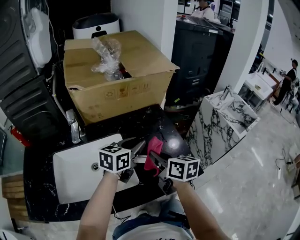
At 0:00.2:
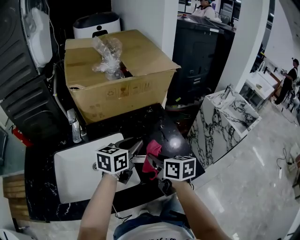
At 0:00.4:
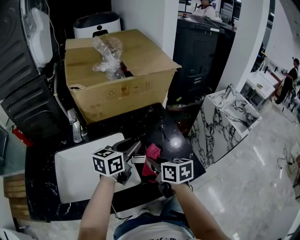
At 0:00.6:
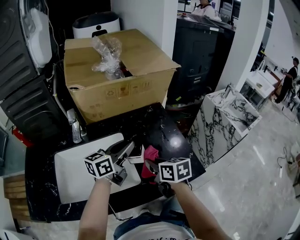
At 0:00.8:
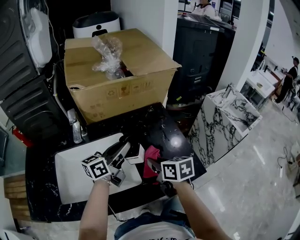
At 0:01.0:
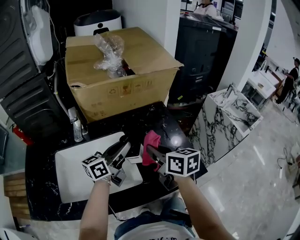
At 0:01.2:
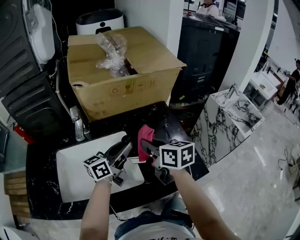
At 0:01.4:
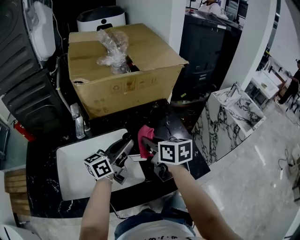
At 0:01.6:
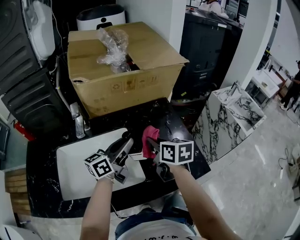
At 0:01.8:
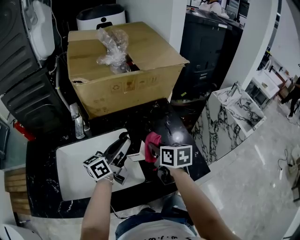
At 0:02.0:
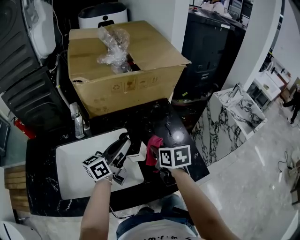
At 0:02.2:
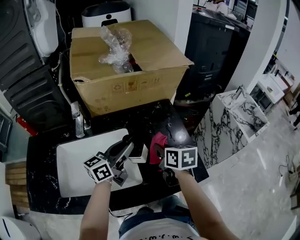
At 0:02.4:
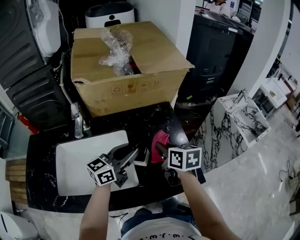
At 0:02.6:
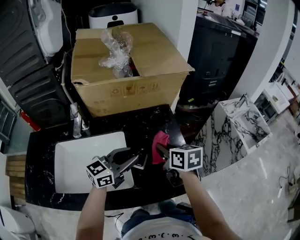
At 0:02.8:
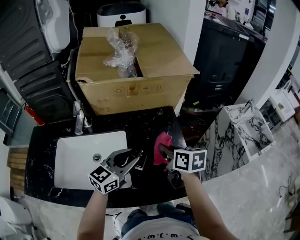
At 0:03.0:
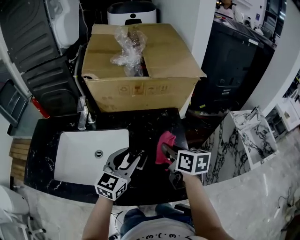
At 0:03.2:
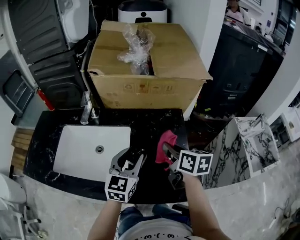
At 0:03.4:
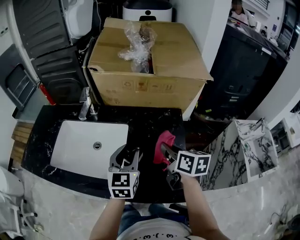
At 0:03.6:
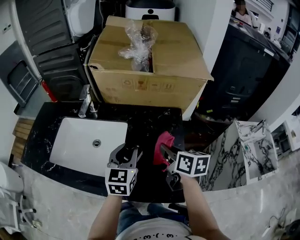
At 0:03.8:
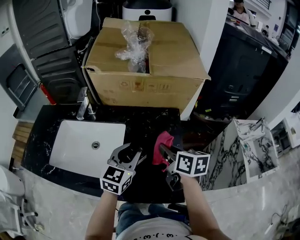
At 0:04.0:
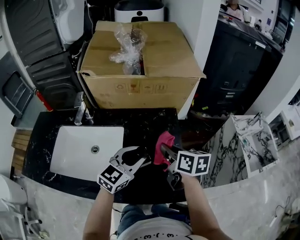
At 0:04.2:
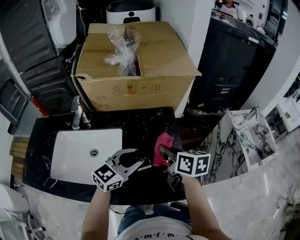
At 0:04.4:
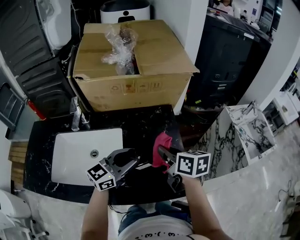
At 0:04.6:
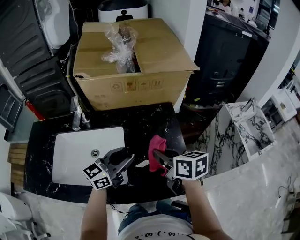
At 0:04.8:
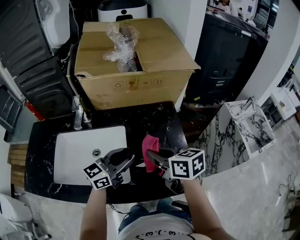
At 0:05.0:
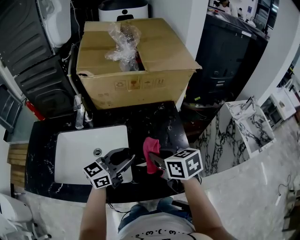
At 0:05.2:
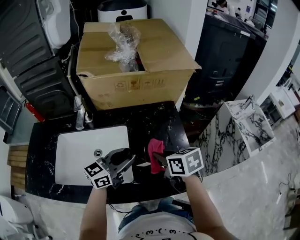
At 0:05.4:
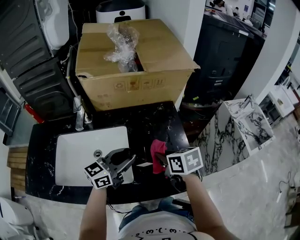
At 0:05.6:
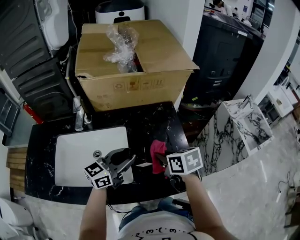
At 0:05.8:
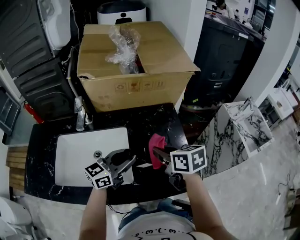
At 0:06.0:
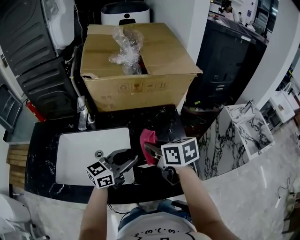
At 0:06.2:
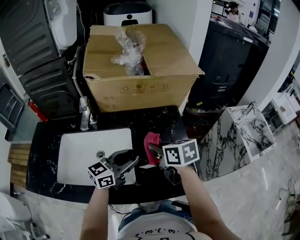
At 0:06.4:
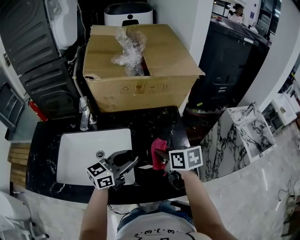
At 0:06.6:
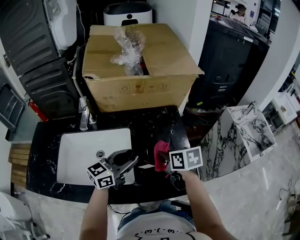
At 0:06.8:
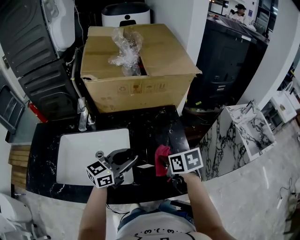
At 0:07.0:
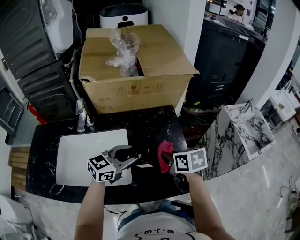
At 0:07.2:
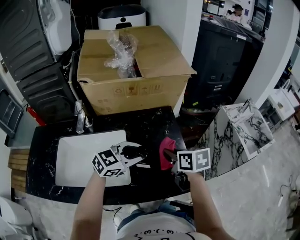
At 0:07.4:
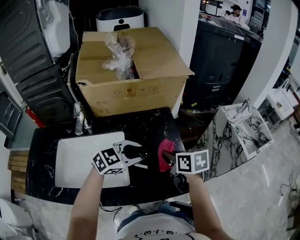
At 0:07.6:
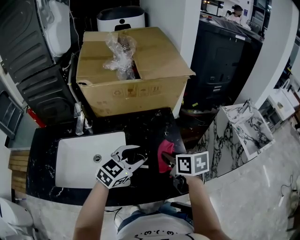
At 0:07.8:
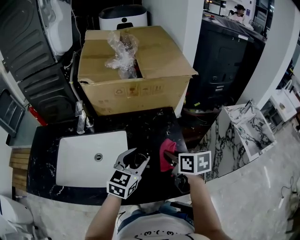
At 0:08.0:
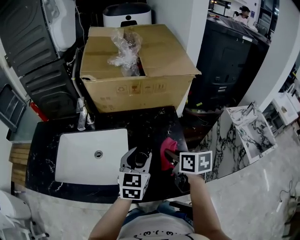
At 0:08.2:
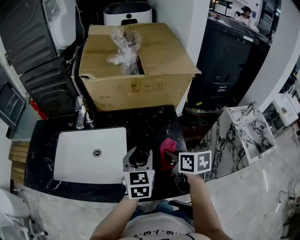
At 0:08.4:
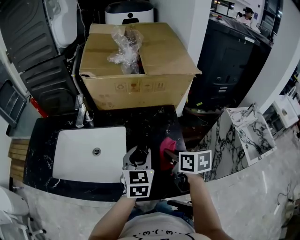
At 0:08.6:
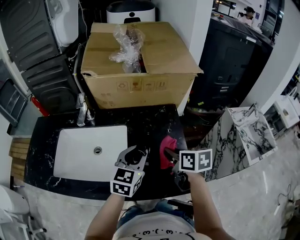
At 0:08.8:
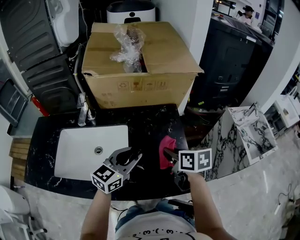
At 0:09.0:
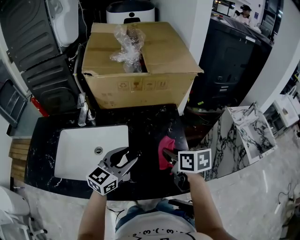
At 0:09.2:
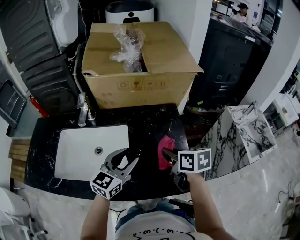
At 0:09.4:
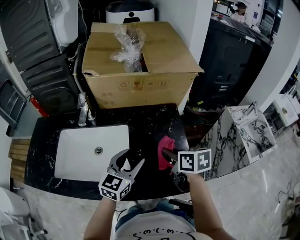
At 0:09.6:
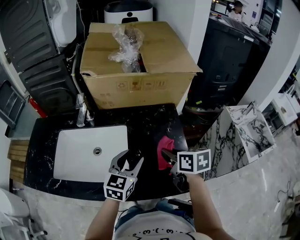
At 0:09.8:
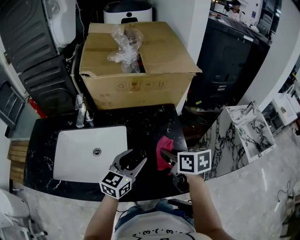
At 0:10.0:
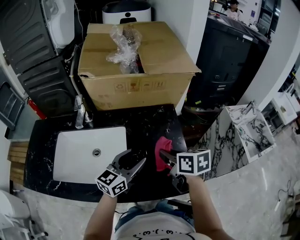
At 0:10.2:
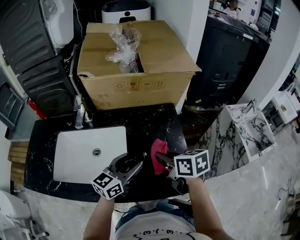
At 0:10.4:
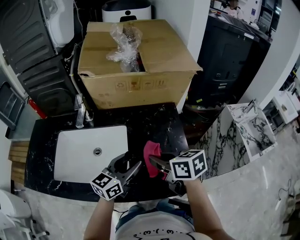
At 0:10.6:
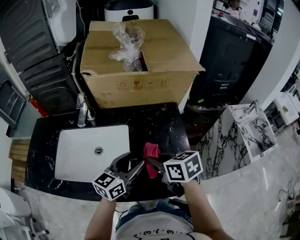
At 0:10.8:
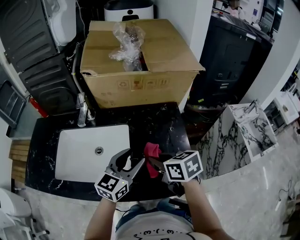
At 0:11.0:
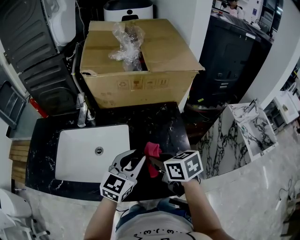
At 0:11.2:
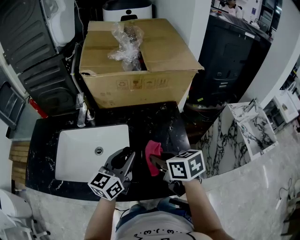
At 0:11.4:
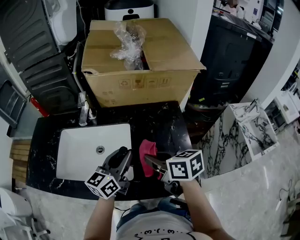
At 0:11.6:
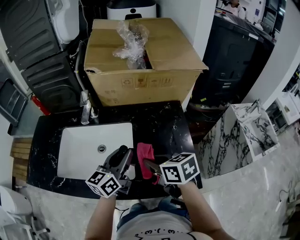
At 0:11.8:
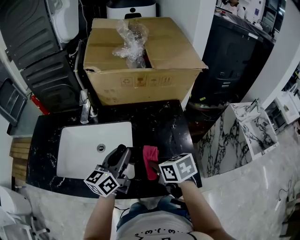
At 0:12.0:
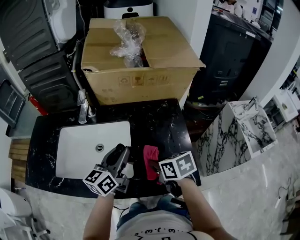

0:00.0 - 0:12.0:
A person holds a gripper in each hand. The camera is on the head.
0:00.0 - 0:01.6: The right gripper goes up and down, roughly 10 cm each way, reversing 2 times. The left gripper travels to the left by about 10 cm, and changes its angle by roughly 30 degrees.
0:01.6 - 0:03.0: Both grippers move to the right, approximately 5 cm. The left gripper swivels roughly 40 degrees.
0:03.0 - 0:04.4: The left gripper turns by about 30 degrees.
0:04.4 - 0:06.0: The right gripper moves to the left, about 10 cm. Meanwhile the left gripper changes place by some 5 cm.
0:06.0 - 0:07.6: The right gripper moves to the right, roughly 10 cm, while the left gripper shifts approximately 5 cm to the right, and changes its angle by roughly 30 degrees.
0:07.6 - 0:09.0: The left gripper is displaced to the left by approximately 5 cm, and turns by about 20 degrees.
0:09.0 - 0:10.4: The right gripper shifts approximately 5 cm to the left.
0:10.4 - 0:12.0: The left gripper goes about 5 cm to the left, and closes its fingers; the right gripper is displaced downward by about 5 cm.

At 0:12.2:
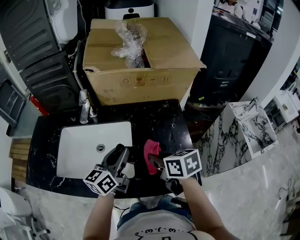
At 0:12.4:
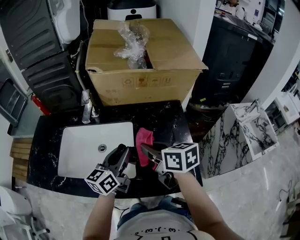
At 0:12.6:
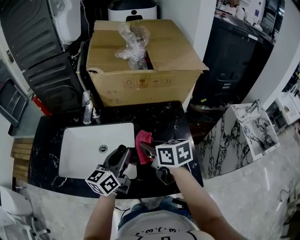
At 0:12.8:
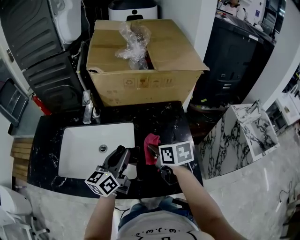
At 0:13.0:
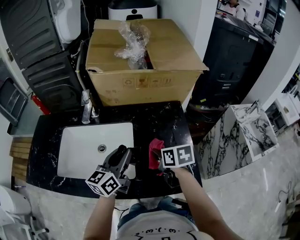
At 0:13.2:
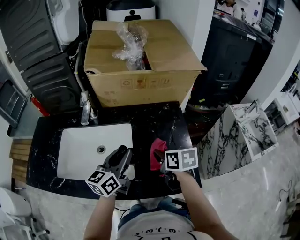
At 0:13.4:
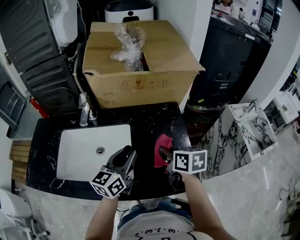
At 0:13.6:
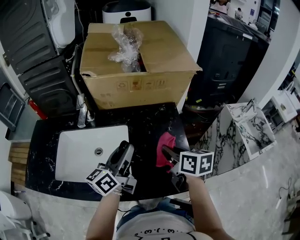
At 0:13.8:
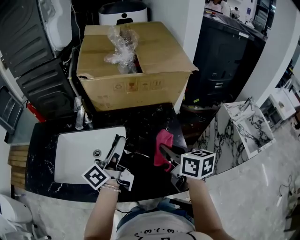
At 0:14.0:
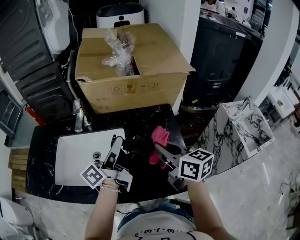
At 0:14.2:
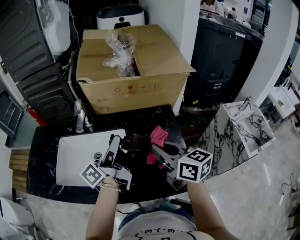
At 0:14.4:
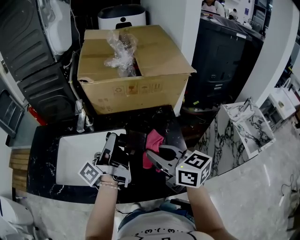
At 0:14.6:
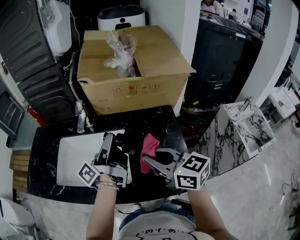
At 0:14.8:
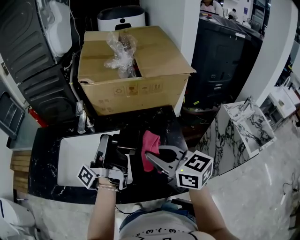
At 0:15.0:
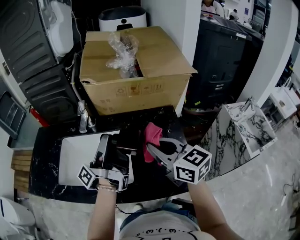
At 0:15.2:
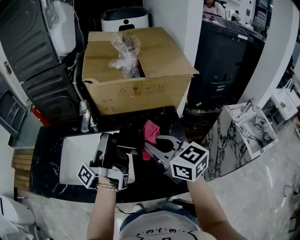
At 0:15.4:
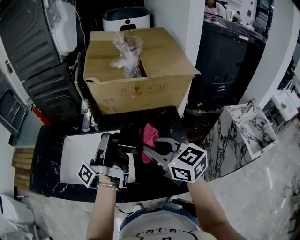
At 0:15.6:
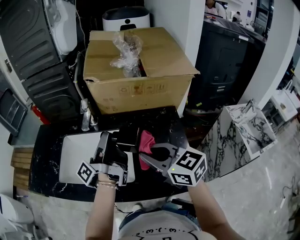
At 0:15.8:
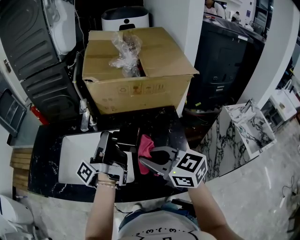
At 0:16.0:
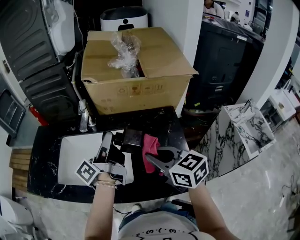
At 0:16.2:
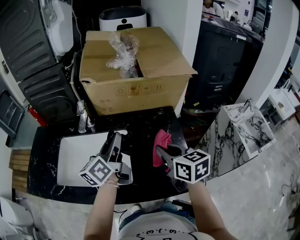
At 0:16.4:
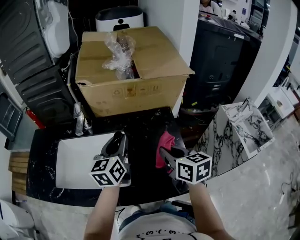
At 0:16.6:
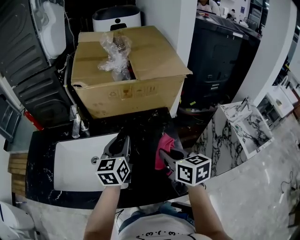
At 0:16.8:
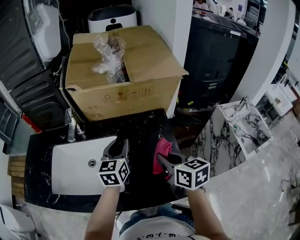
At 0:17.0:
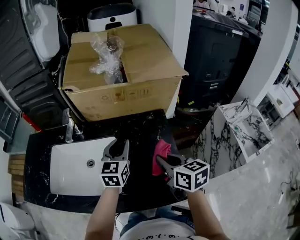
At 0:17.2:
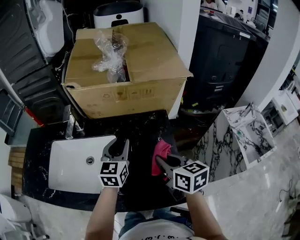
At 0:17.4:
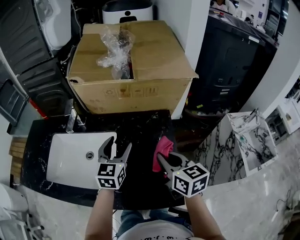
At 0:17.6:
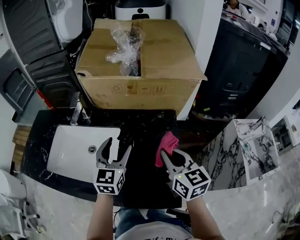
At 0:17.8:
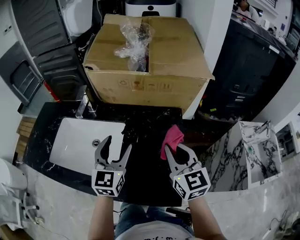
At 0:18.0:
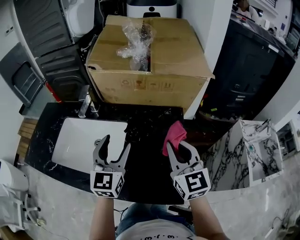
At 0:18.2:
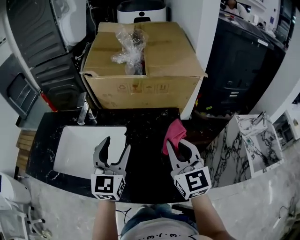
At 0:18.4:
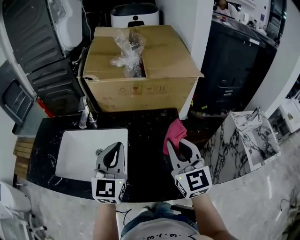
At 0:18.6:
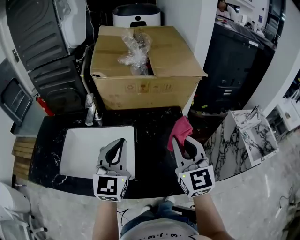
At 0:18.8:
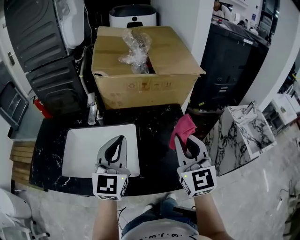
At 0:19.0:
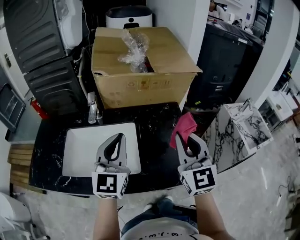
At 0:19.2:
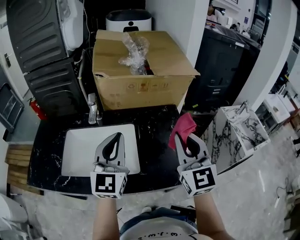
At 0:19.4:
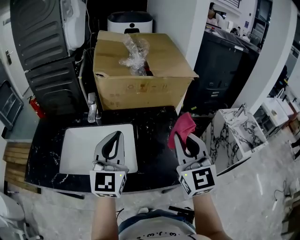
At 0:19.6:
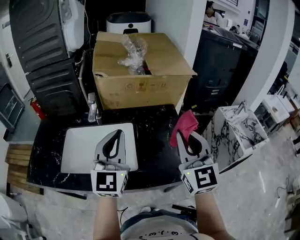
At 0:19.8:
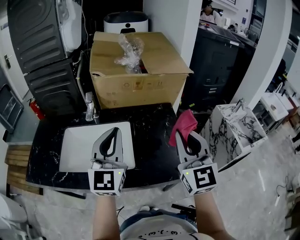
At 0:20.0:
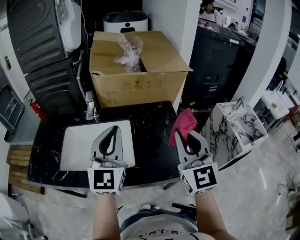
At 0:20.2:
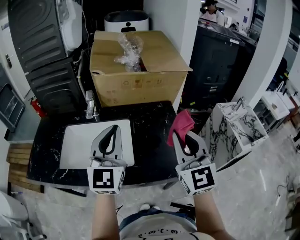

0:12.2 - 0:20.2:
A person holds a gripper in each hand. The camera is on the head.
0:12.2 - 0:13.8: The left gripper goes some 5 cm upward, and rotates roughly 30 degrees. Meanwhile the right gripper goes some 10 cm to the right.
0:13.8 - 0:15.4: The right gripper is displaced to the left and upward by roughly 10 cm, and changes its angle by approximately 30 degrees, while the left gripper goes approximately 5 cm to the left, and changes its angle by roughly 30 degrees.
0:15.4 - 0:17.0: Both grippers travel together to the right and downward, about 15 cm. The left gripper twists some 80 degrees clockwise, seen from behind. Meanwhile the right gripper turns by approximately 30 degrees.
0:17.0 - 0:18.6: The right gripper travels upward by roughly 10 cm, and changes its angle by about 50 degrees. The left gripper heads upward, backward and to the left, covering roughly 15 cm, and opens, then closes again.
0:18.6 - 0:20.2: The grippers both shift backward and upward by about 10 cm.

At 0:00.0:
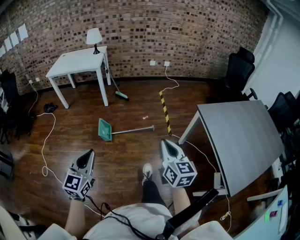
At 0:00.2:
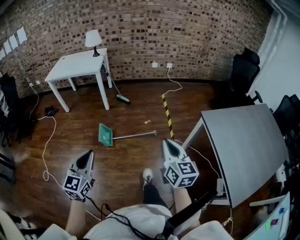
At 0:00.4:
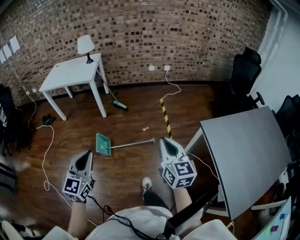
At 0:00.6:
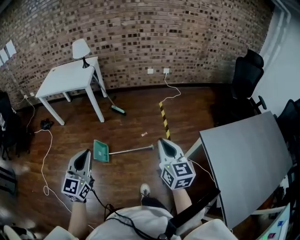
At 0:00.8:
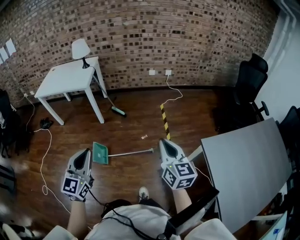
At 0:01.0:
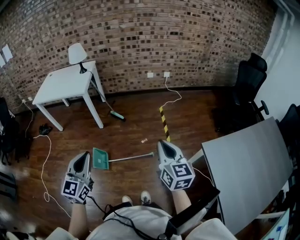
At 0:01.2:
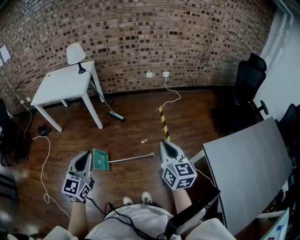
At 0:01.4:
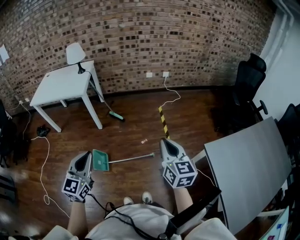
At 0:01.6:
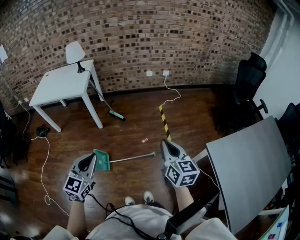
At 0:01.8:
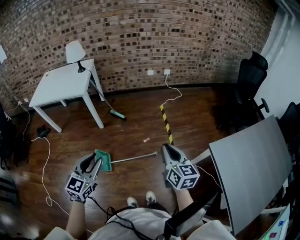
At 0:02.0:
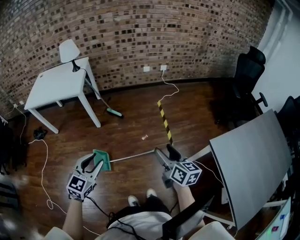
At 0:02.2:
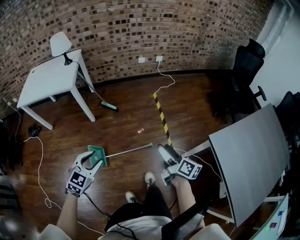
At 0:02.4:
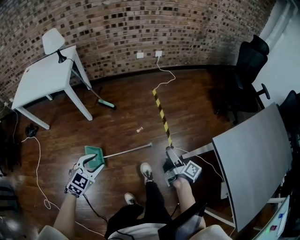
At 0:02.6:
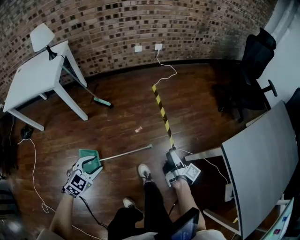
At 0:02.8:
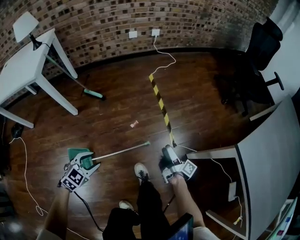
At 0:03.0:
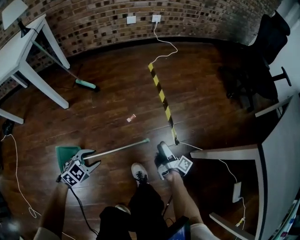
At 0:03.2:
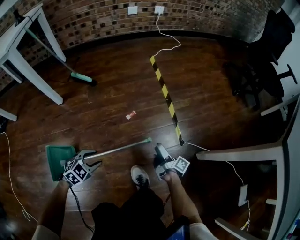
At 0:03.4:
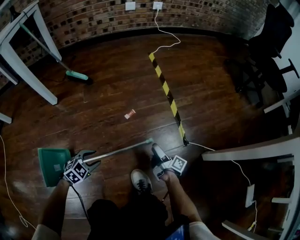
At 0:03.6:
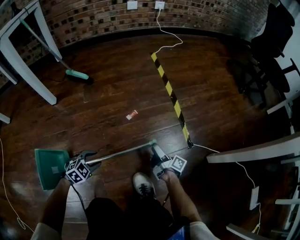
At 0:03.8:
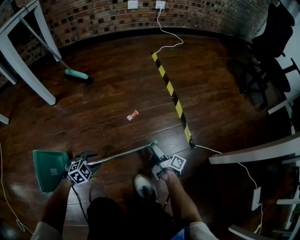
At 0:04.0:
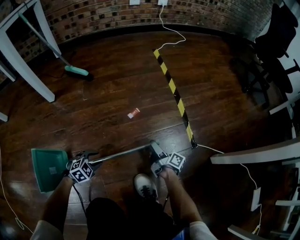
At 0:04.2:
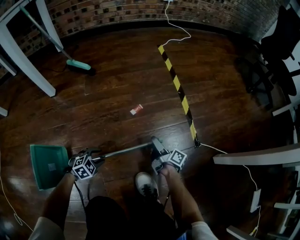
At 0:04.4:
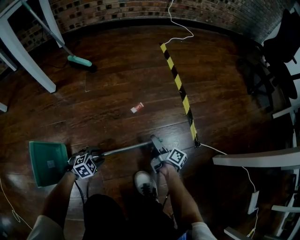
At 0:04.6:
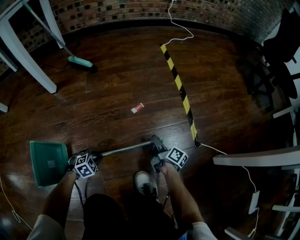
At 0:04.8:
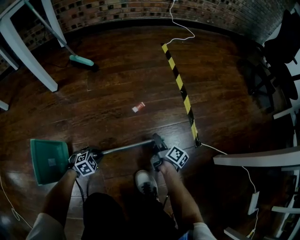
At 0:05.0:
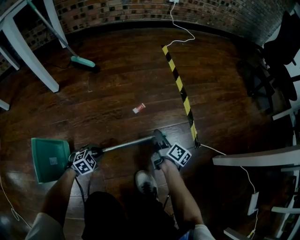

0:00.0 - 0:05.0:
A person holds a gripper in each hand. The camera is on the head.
0:00.0 - 0:01.6: The grippers both shift forward by roughly 40 cm.
0:01.6 - 0:03.4: Both grippers travel together downward, some 90 cm. The right gripper rotates around the line of its fingers by approximately 70 degrees, clockwise from behind, and opens. The left gripper tips its fingers downward by roughly 40 degrees, and opens.
0:03.4 - 0:05.0: The left gripper goes some 15 cm downward, and closes. The right gripper travels forward by roughly 5 cm, goes downward and returns, approximately 10 cm each way, turns by some 30 degrees, and closes its fingers.
